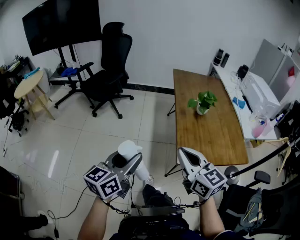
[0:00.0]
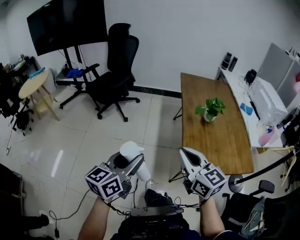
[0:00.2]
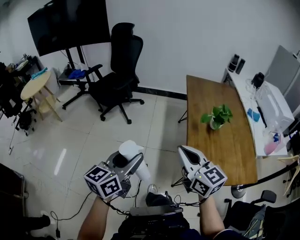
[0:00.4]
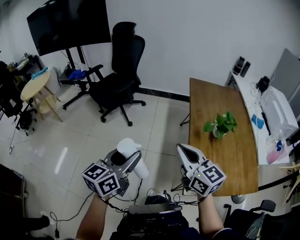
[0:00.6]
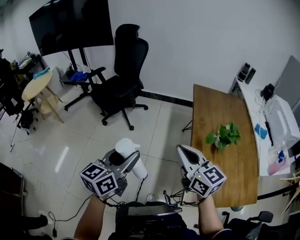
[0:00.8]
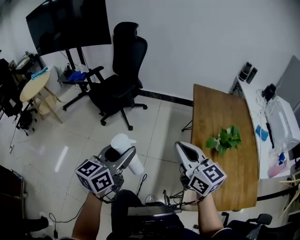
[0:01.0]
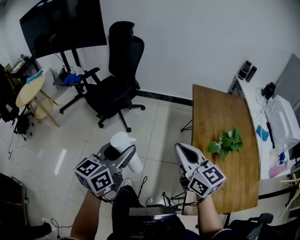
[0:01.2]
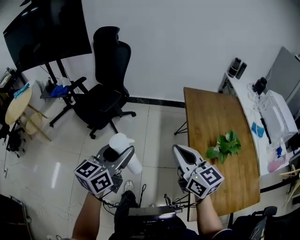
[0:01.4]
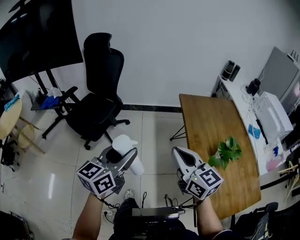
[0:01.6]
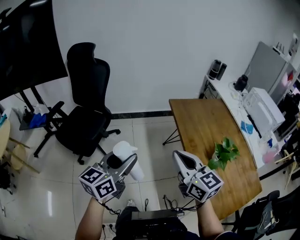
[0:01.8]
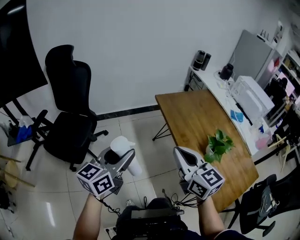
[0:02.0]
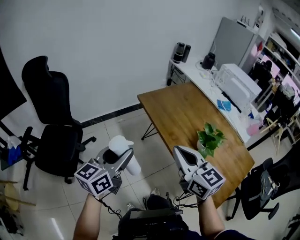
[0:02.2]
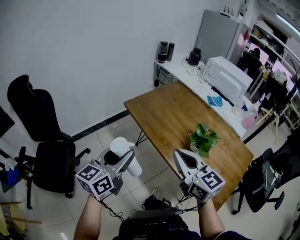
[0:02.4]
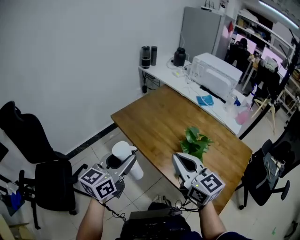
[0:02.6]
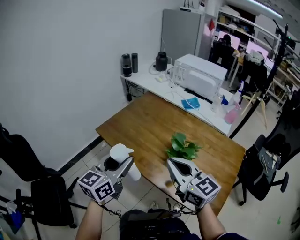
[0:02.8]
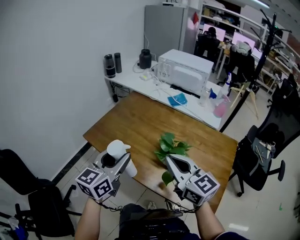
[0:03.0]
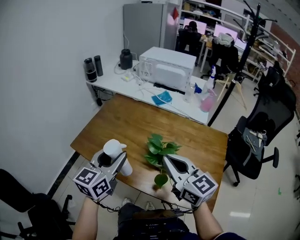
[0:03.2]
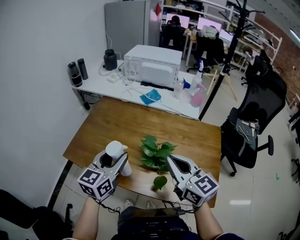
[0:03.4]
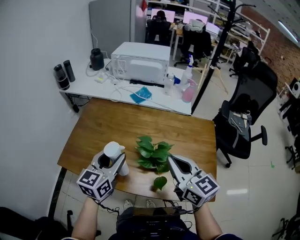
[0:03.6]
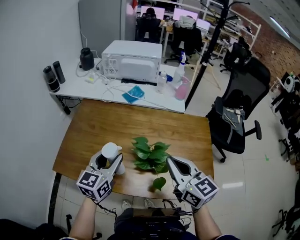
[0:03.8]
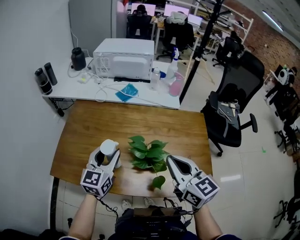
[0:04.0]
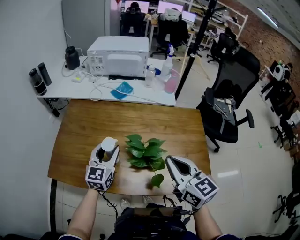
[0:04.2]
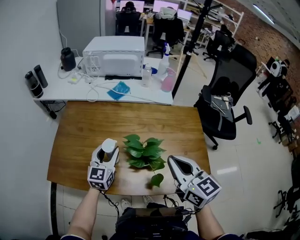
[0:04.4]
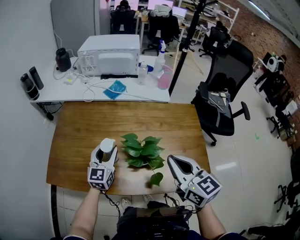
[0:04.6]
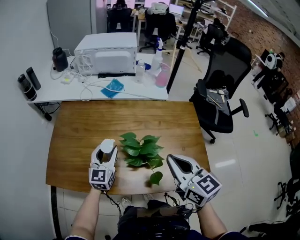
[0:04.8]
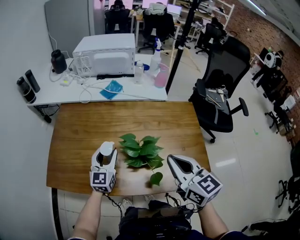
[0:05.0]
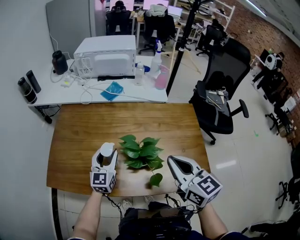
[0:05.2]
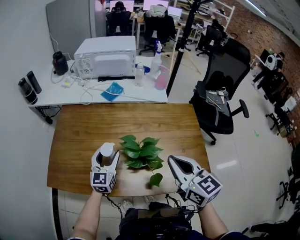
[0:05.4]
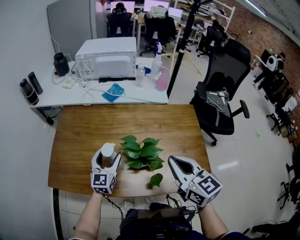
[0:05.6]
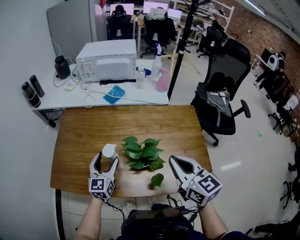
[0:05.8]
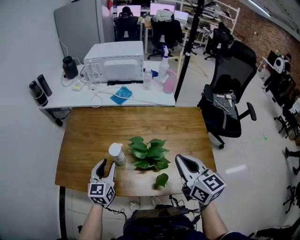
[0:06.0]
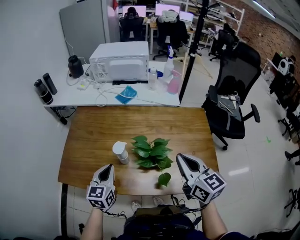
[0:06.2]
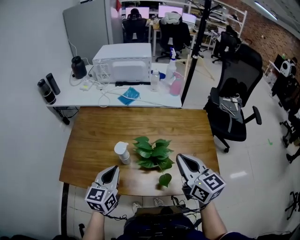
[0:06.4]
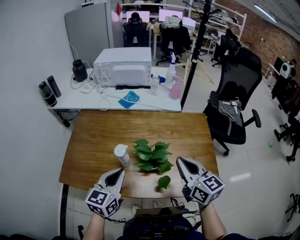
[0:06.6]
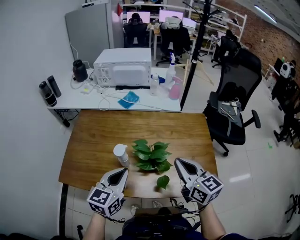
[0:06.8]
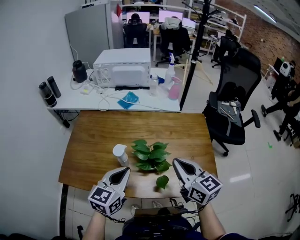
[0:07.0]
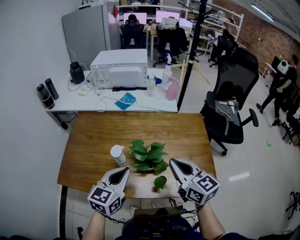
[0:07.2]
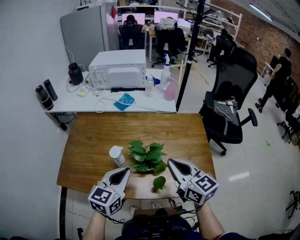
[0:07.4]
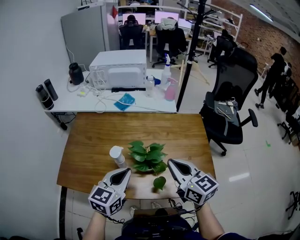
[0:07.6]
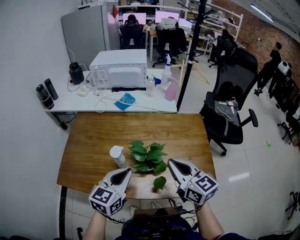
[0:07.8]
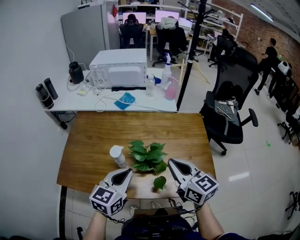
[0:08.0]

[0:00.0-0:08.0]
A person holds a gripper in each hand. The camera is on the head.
0:00.0 to 0:01.6: The grippers both shift forward by approximately 40 cm.
0:01.6 to 0:03.2: The right gripper ends up approximately 30 cm from where it was, and changes its angle by about 60 degrees; the left gripper ends up approximately 40 cm from where it was, and changes its angle by about 60 degrees.
0:03.2 to 0:04.8: The left gripper travels downward and forward by some 20 cm. The right gripper is displaced to the right by roughly 5 cm, and swivels about 30 degrees.
0:04.8 to 0:06.4: The left gripper is displaced backward by roughly 10 cm, and closes.
0:06.4 to 0:08.0: The left gripper is displaced to the right by some 10 cm.

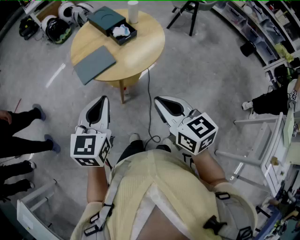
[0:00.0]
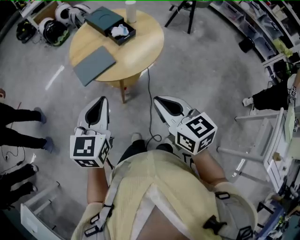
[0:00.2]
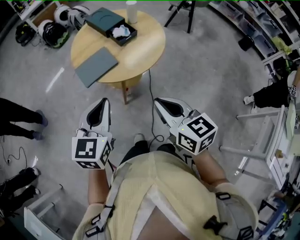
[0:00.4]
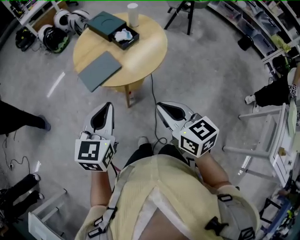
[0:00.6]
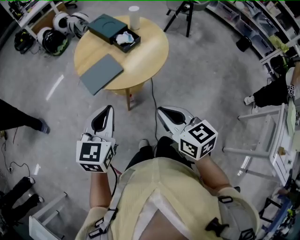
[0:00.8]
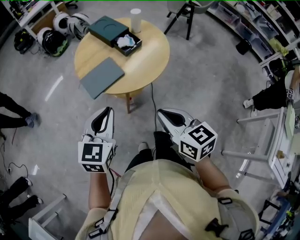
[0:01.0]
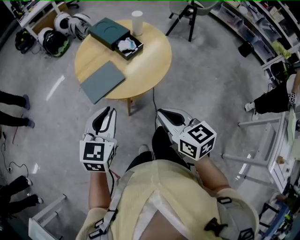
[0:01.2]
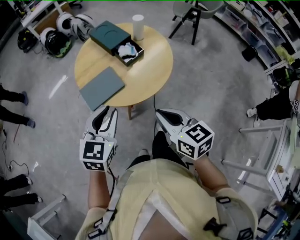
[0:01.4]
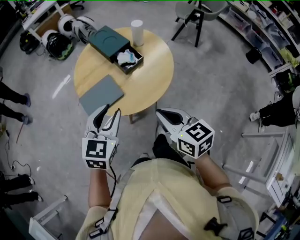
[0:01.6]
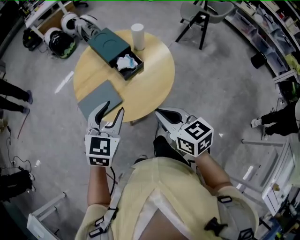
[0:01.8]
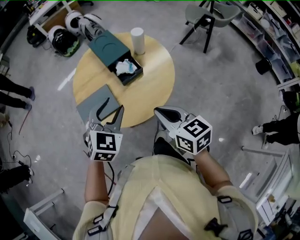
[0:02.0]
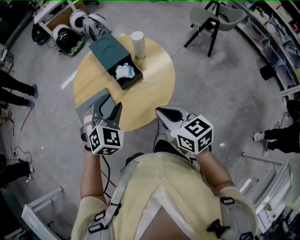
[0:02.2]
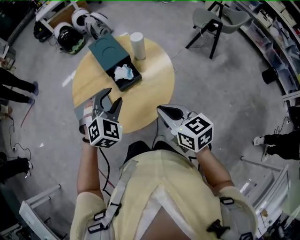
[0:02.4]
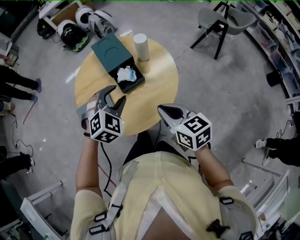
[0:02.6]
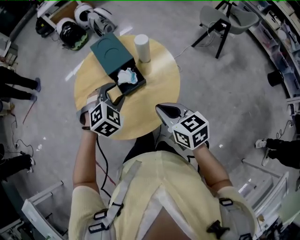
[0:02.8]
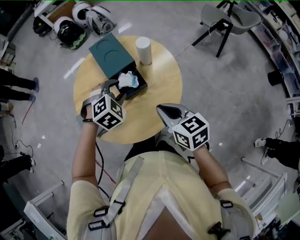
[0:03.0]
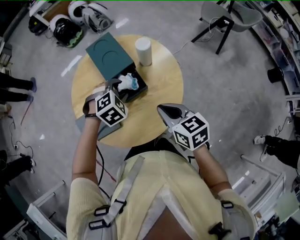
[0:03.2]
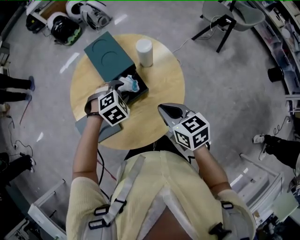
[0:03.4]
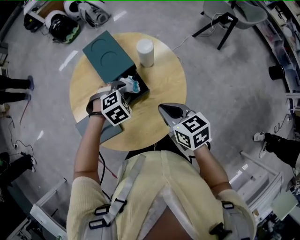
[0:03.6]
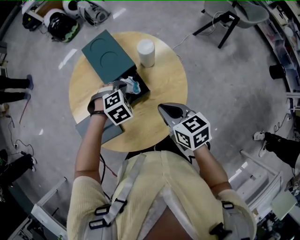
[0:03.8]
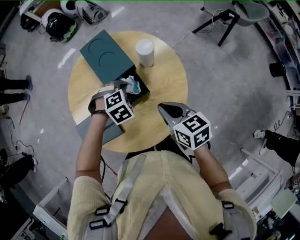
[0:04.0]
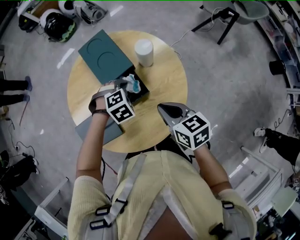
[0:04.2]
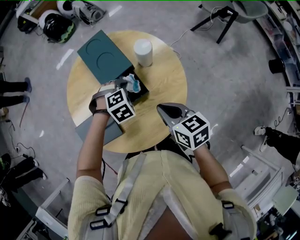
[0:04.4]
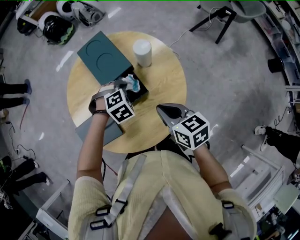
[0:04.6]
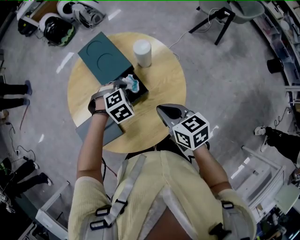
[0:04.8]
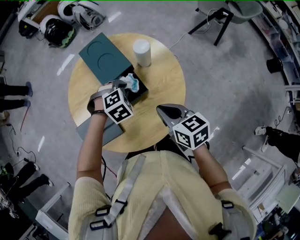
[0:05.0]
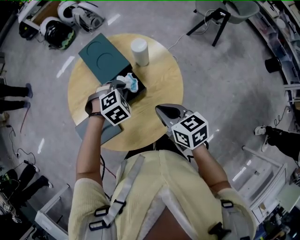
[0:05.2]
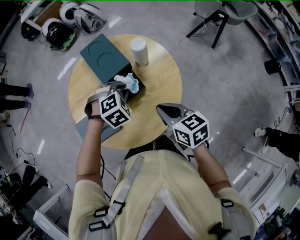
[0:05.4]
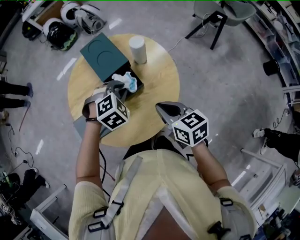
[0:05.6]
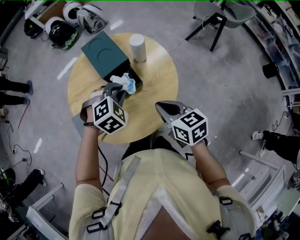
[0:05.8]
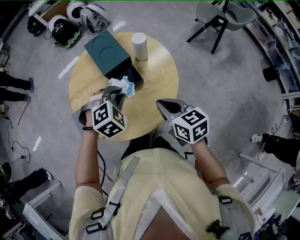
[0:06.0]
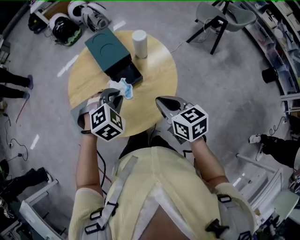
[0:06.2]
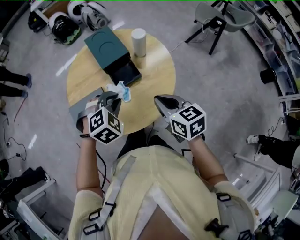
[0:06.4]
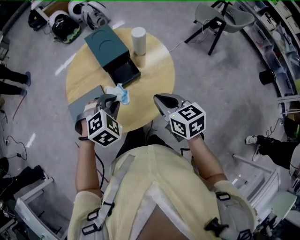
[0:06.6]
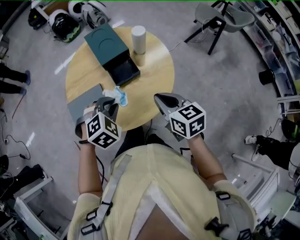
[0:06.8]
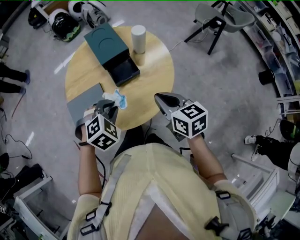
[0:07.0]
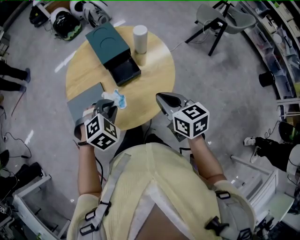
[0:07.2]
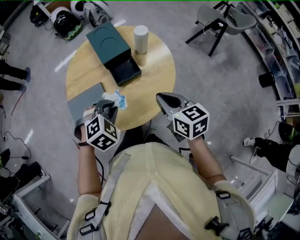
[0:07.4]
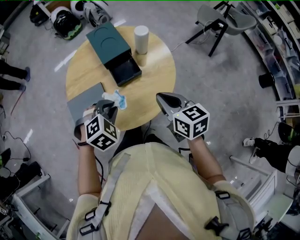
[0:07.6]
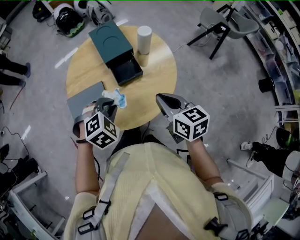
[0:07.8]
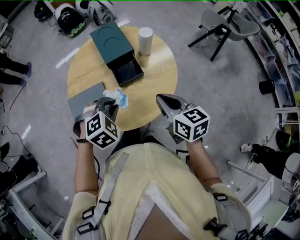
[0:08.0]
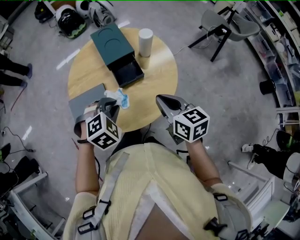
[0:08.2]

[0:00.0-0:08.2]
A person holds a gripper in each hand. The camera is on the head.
0:00.0 to 0:01.6: Both grippers travel together forward, approximately 15 cm. The left gripper opens up.
0:01.6 to 0:03.2: The left gripper goes roughly 30 cm forward, downward and to the right, and angles its fingers downward, by about 40 degrees; the right gripper shifts some 25 cm forward and to the right.
0:03.2 to 0:05.0: The left gripper shifts some 5 cm downward, and closes.
0:05.0 to 0:06.6: The left gripper heads backward and upward, covering some 20 cm; the right gripper shifts some 5 cm backward.
0:06.6 to 0:08.2: The grippers stay close to where they were, moving slightly.

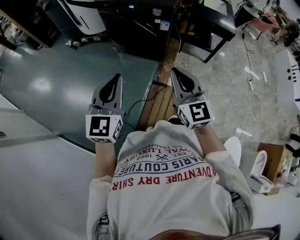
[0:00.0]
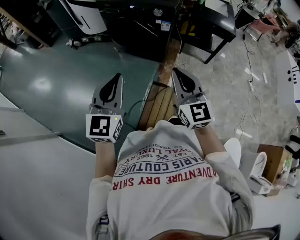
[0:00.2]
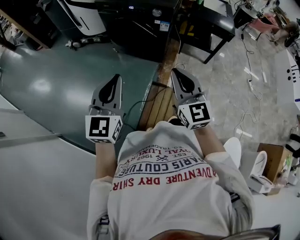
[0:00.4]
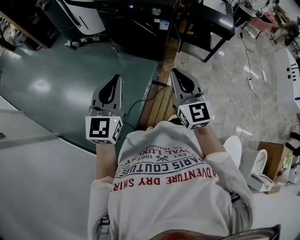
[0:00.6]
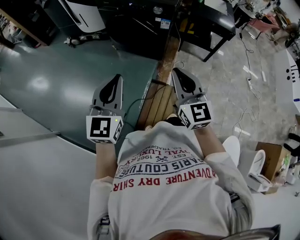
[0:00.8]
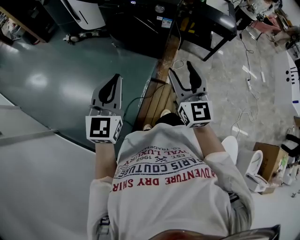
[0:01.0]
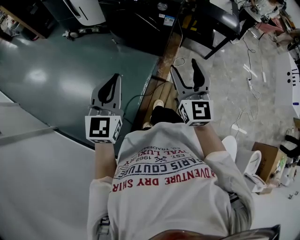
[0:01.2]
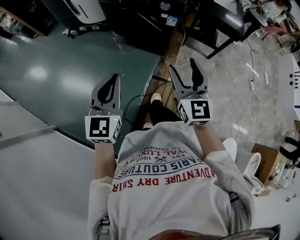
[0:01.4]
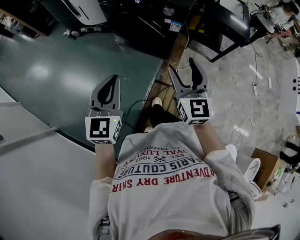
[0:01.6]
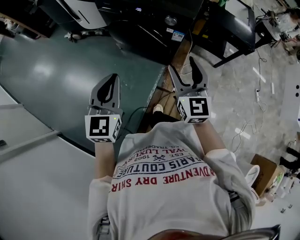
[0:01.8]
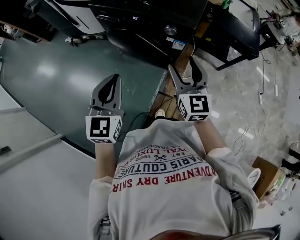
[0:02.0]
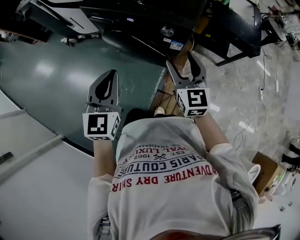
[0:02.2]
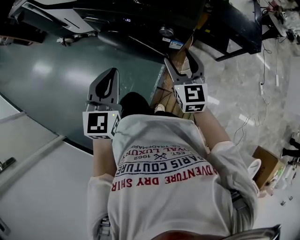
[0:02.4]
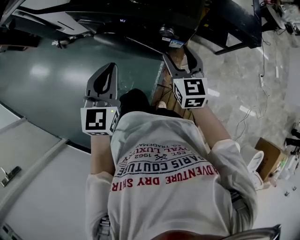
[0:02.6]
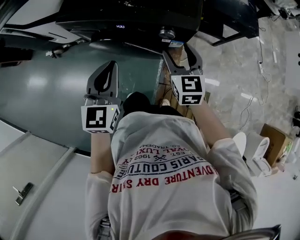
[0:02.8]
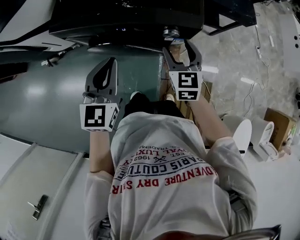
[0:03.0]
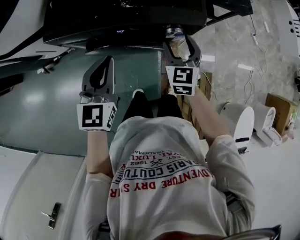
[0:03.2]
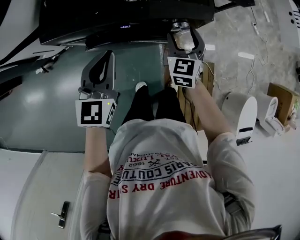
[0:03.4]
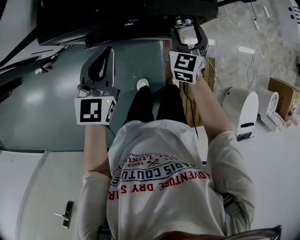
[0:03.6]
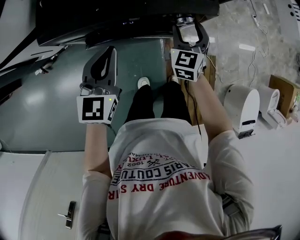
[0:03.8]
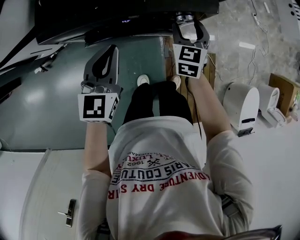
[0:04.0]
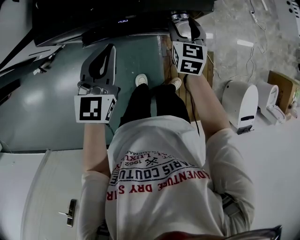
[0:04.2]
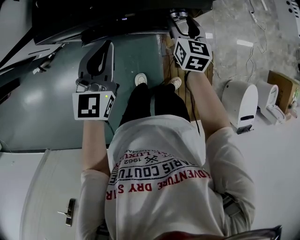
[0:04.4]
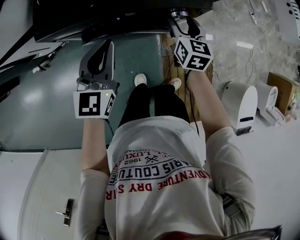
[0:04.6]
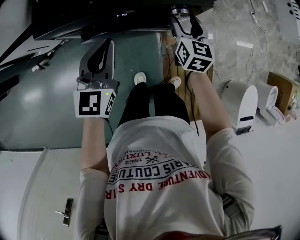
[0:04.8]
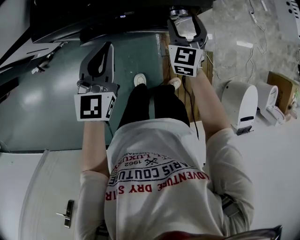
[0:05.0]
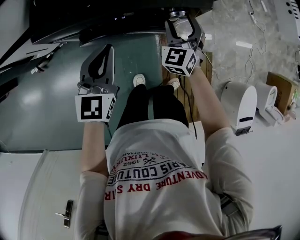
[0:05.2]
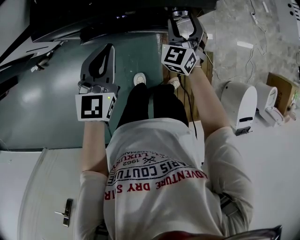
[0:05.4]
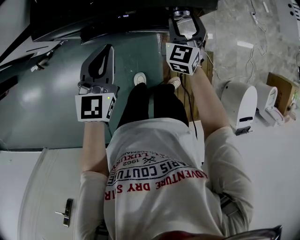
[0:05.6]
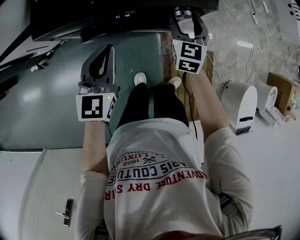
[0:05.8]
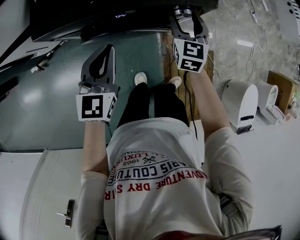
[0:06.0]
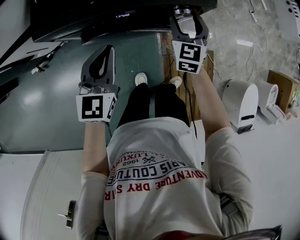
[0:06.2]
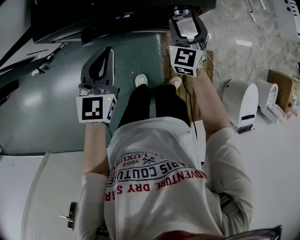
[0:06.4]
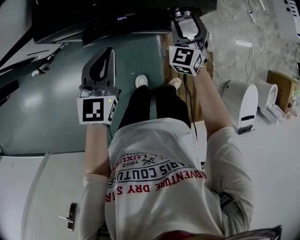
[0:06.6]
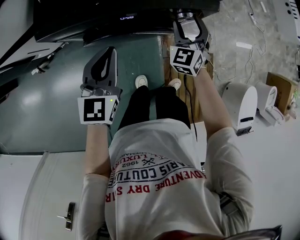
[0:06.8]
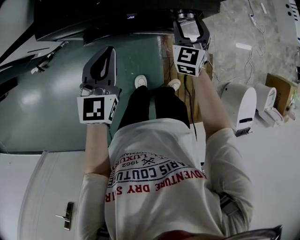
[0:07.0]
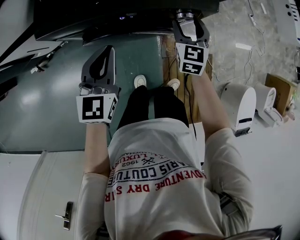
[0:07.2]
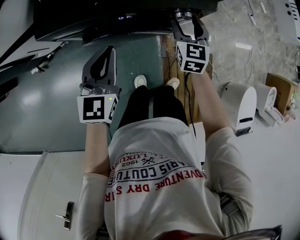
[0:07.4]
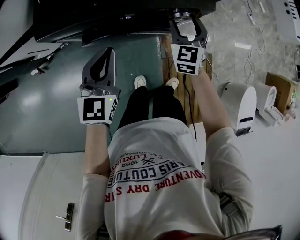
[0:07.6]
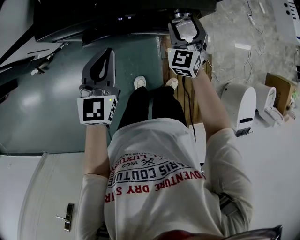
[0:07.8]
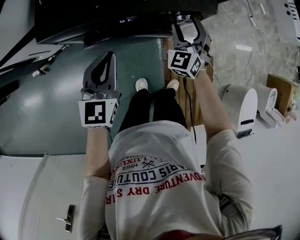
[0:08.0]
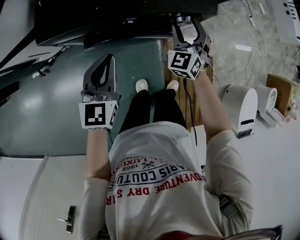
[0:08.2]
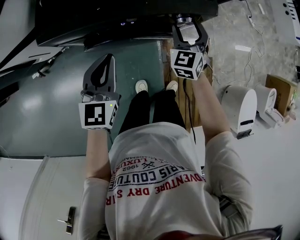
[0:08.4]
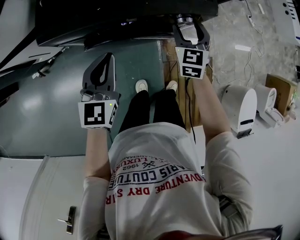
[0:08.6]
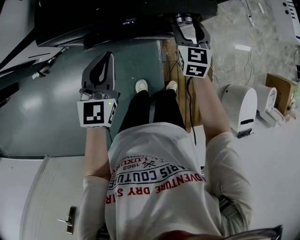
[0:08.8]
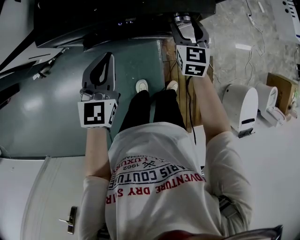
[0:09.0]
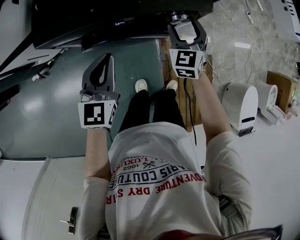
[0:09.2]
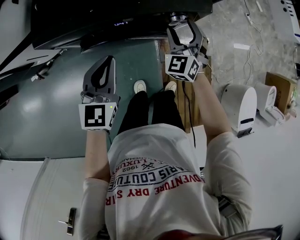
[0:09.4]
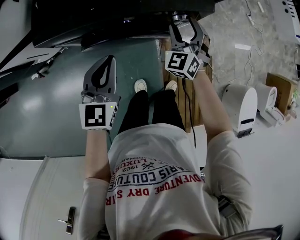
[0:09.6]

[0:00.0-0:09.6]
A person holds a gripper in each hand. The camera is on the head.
0:00.0 to 0:01.6: The left gripper heads forward and downward, covering some 15 cm. The right gripper goes about 15 cm forward, and opens.
0:01.6 to 0:03.2: The right gripper changes place by some 35 cm, and turns by some 40 degrees; the left gripper ends up about 40 cm from where it was, and swivels roughly 30 degrees.
0:03.2 to 0:04.8: The right gripper turns by about 20 degrees.
0:04.8 to 0:06.4: The right gripper swivels some 30 degrees.
0:06.4 to 0:08.0: The grippers move only a little.